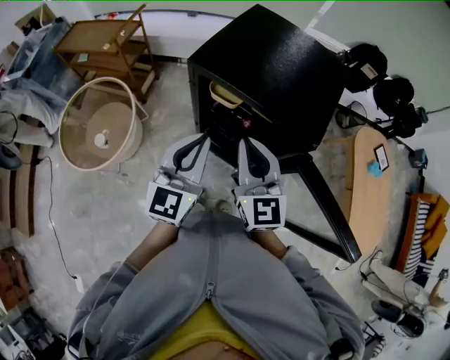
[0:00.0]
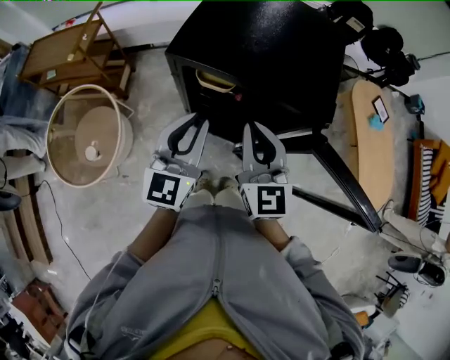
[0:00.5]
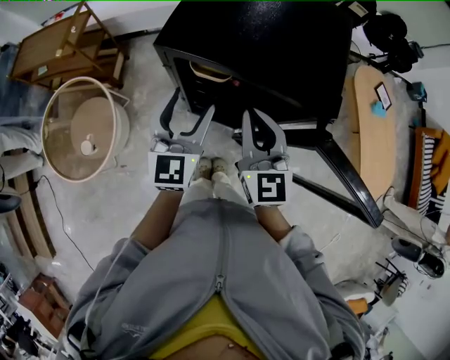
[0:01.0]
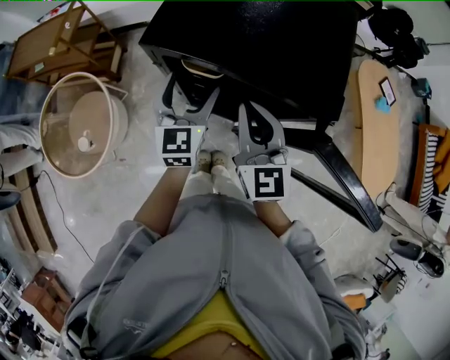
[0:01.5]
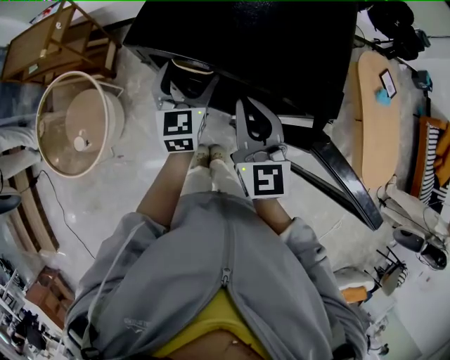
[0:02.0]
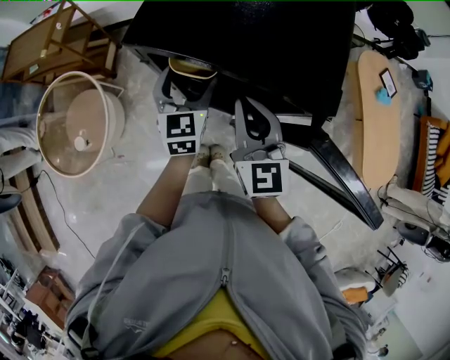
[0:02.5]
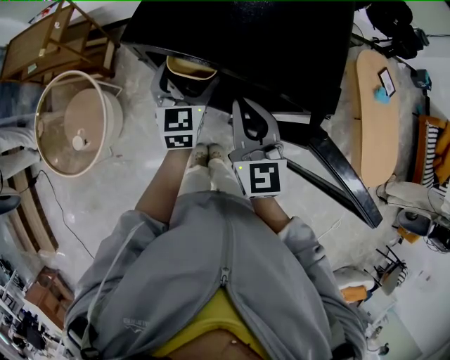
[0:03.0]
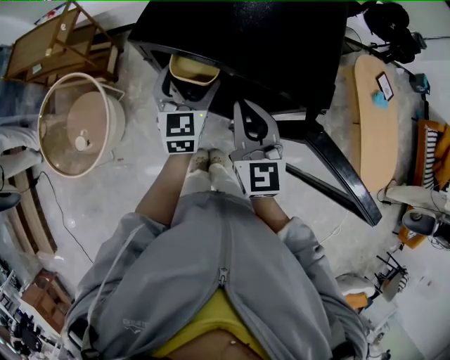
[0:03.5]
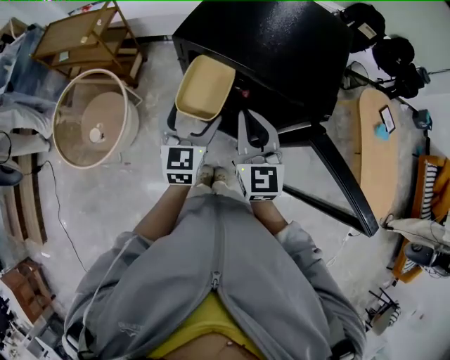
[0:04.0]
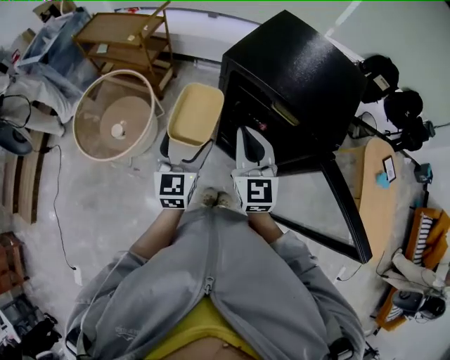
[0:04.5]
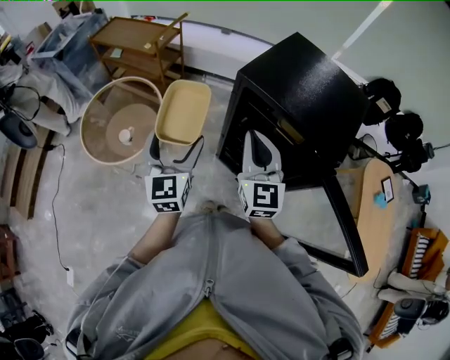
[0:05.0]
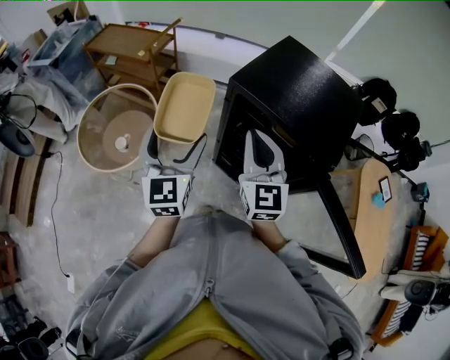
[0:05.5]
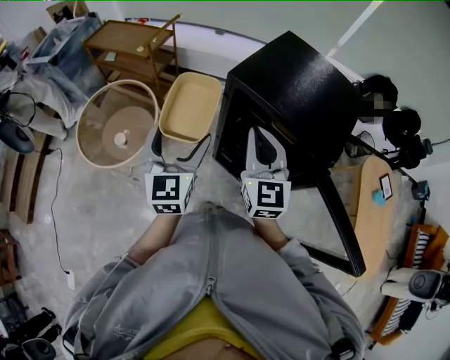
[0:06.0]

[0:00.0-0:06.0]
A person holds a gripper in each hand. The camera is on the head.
0:00.0 to 0:02.0: The left gripper goes about 25 cm forward and downward, and opens up, while the right gripper heads forward and downward, covering roughly 10 cm.
0:02.0 to 0:04.0: The right gripper shifts by roughly 5 cm, while the left gripper moves backward, approximately 10 cm.
0:04.0 to 0:06.0: The left gripper goes about 20 cm to the left and upward; the right gripper shifts some 10 cm upward and to the left.

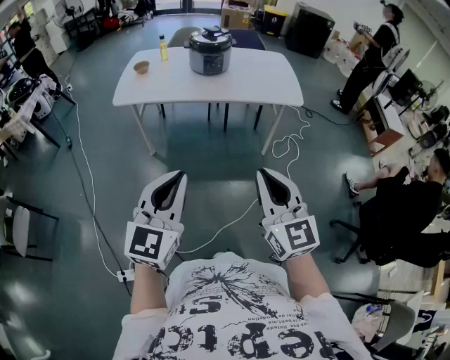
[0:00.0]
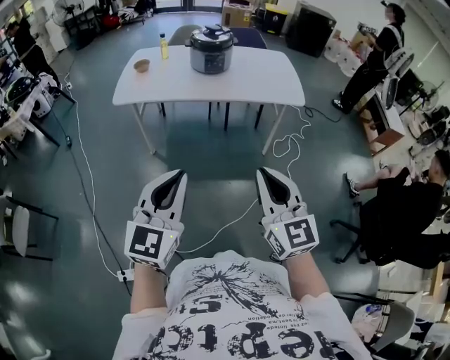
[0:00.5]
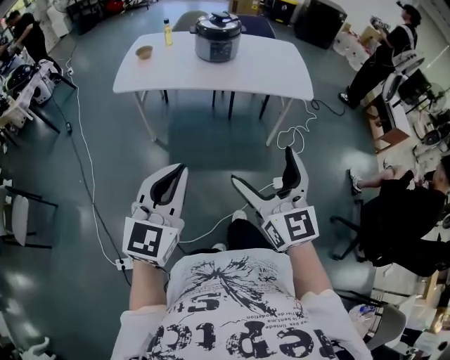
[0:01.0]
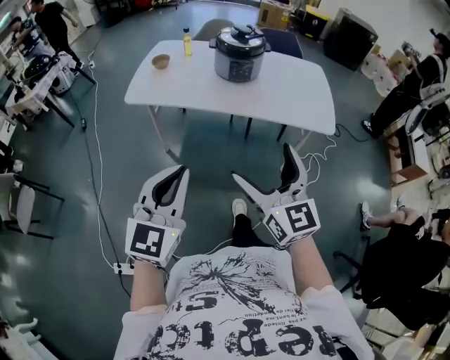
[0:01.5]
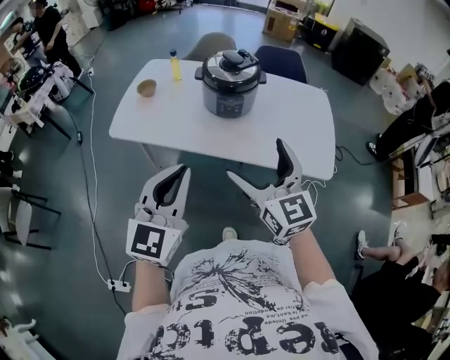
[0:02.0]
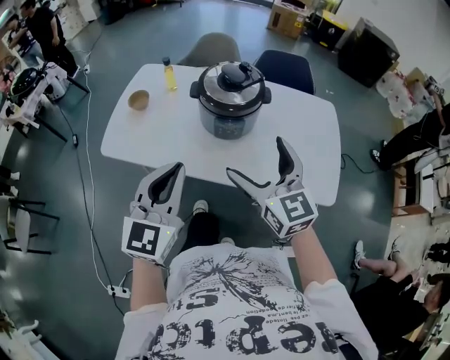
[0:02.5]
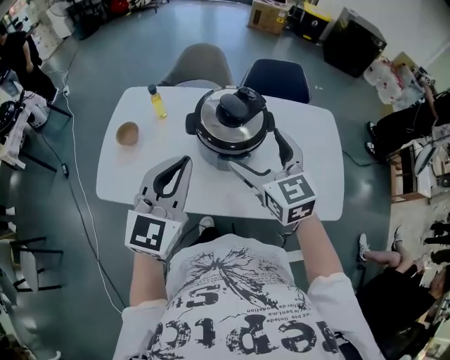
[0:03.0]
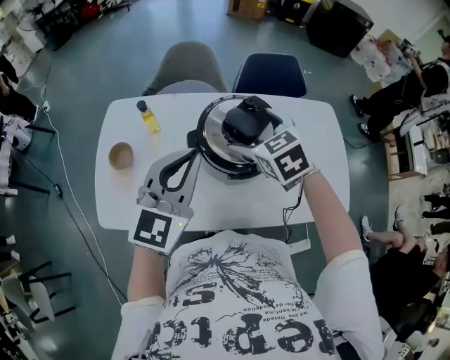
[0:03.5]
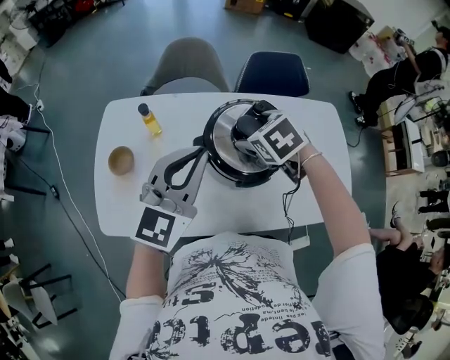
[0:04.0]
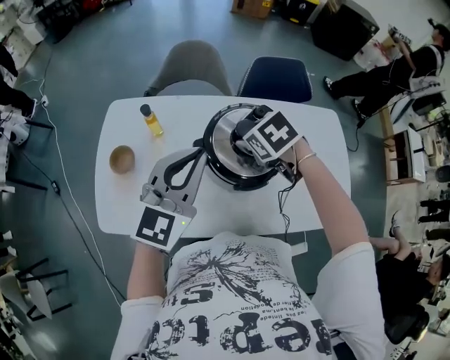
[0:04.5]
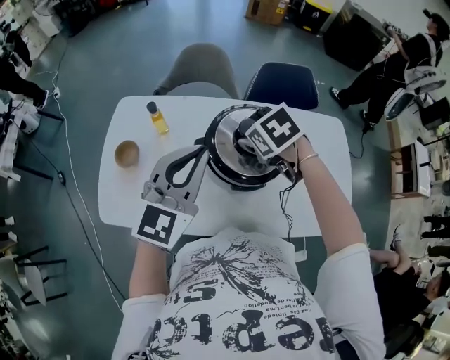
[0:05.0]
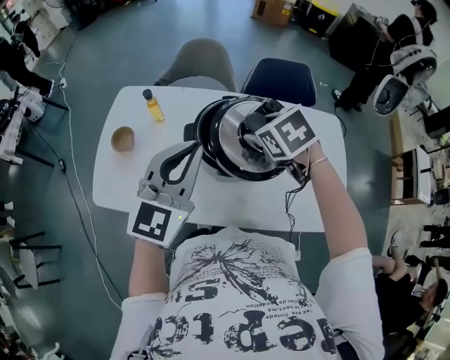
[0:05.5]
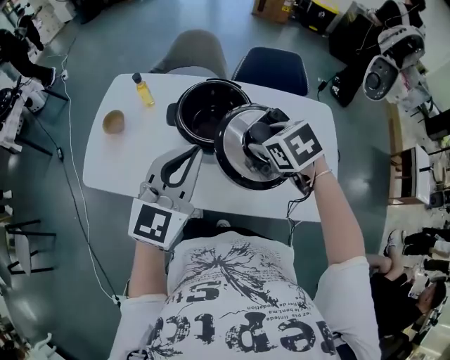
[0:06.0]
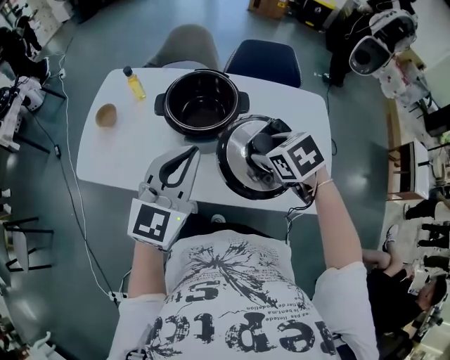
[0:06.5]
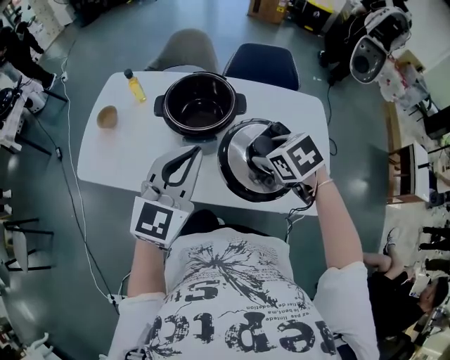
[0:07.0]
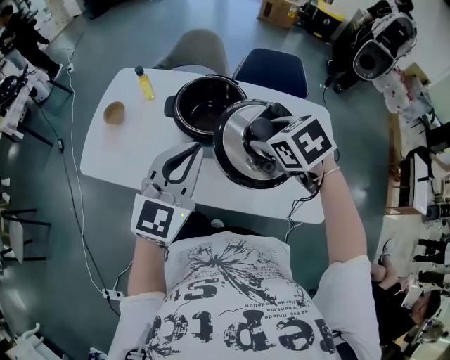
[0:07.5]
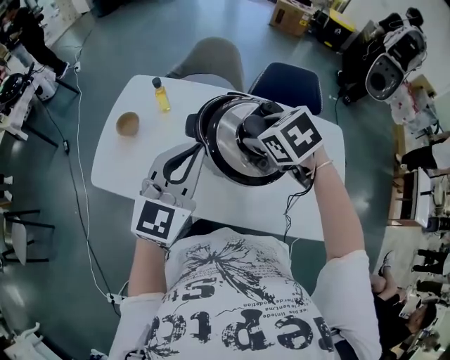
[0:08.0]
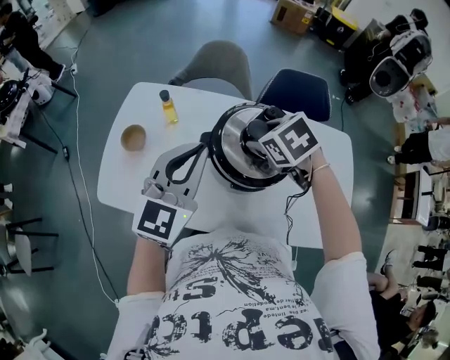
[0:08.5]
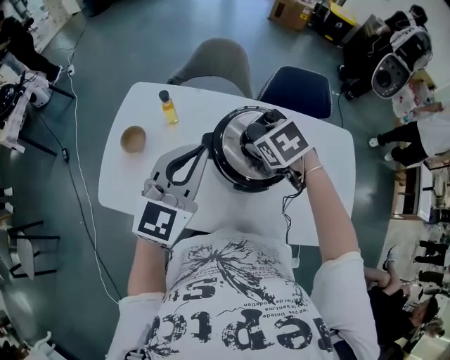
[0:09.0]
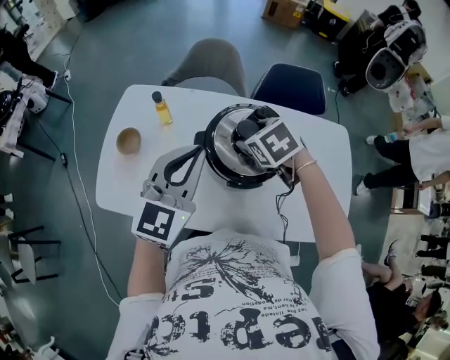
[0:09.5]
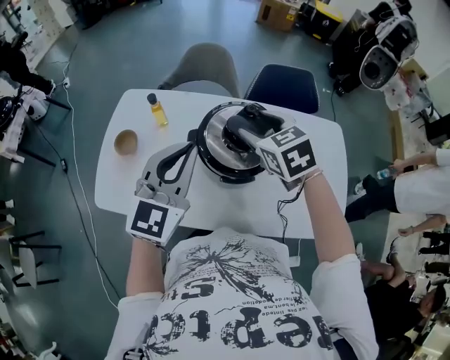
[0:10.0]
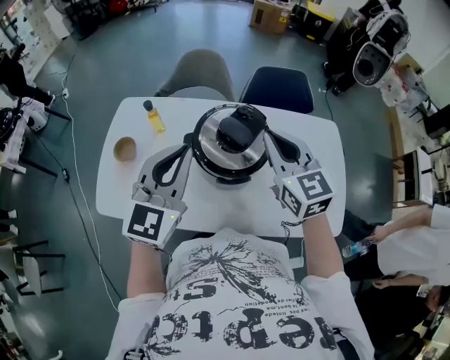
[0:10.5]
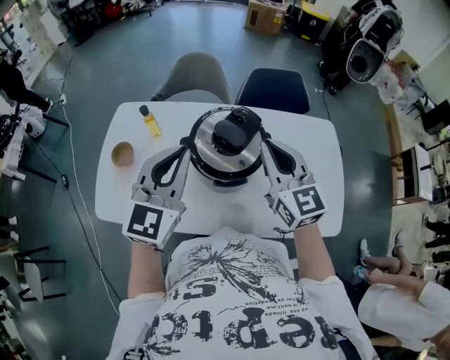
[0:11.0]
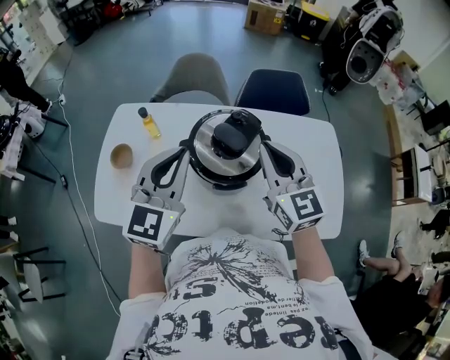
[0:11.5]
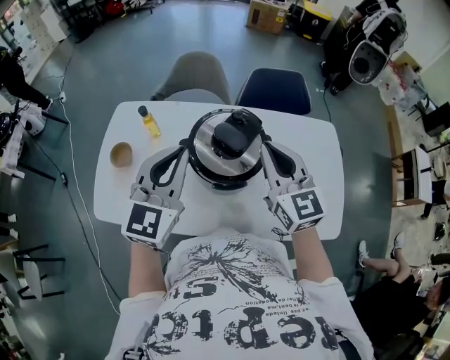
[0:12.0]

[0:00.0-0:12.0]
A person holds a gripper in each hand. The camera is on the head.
0:00.0 to 0:02.0: Both grippers are carried forward, roughly 60 cm. The right gripper opens.
0:02.0 to 0:04.0: The two grippers travel together, forward, approximately 70 cm. The left gripper rotates roughly 20 degrees; the right gripper angles its fingers downward, by some 60 degrees.
0:04.0 to 0:06.0: Both grippers travel together to the right and backward, about 25 cm.
0:06.0 to 0:08.0: The two grippers go approximately 10 cm to the left and forward.
0:08.0 to 0:10.0: The two grippers go about 10 cm forward. The right gripper turns by about 20 degrees.
0:10.0 to 0:12.0: The right gripper shifts some 10 cm to the right and backward, angles its fingers upward, by roughly 30 degrees, and closes its fingers.

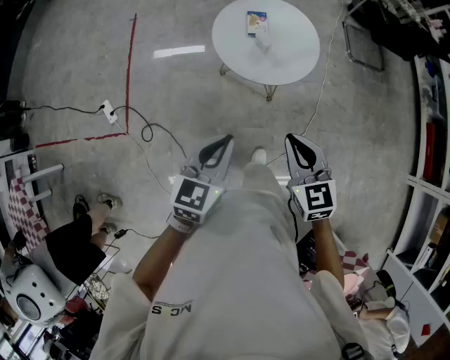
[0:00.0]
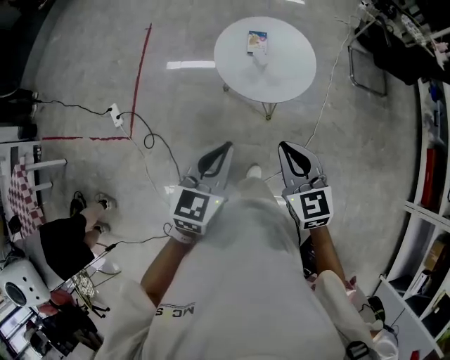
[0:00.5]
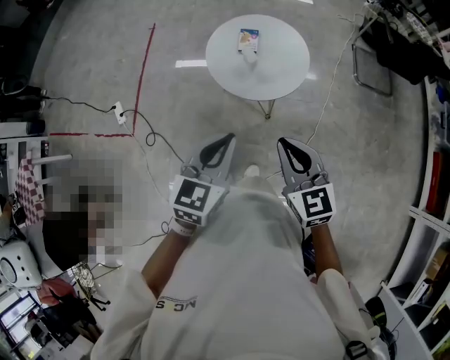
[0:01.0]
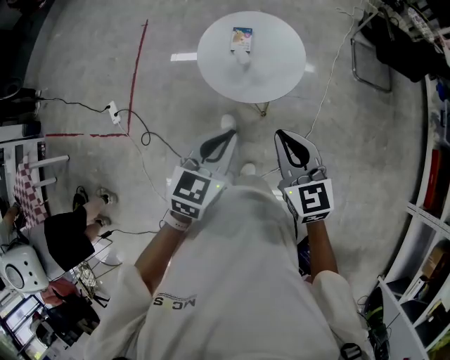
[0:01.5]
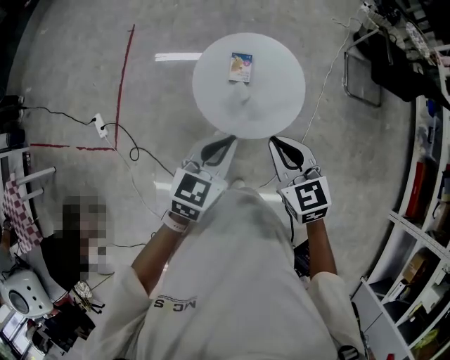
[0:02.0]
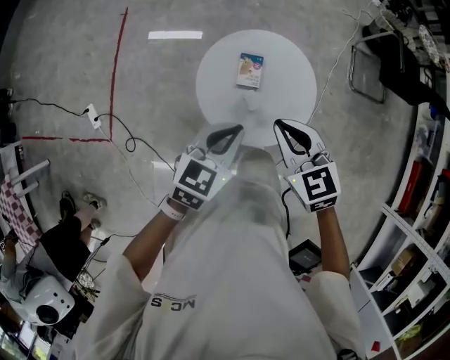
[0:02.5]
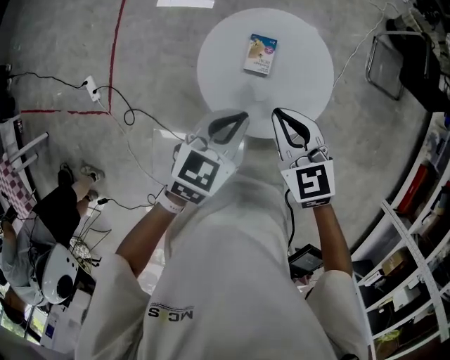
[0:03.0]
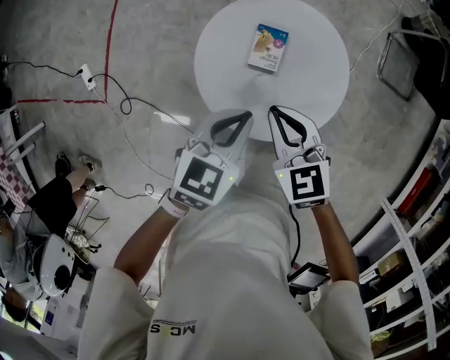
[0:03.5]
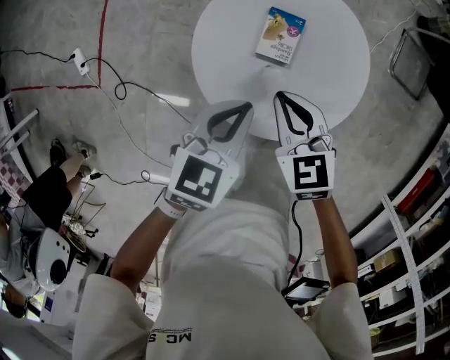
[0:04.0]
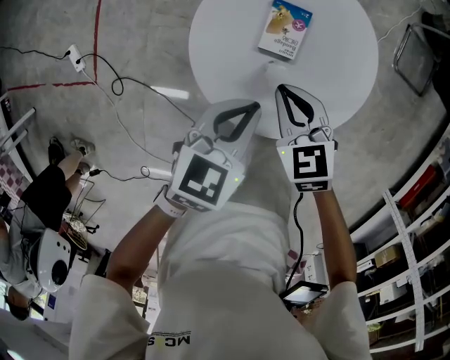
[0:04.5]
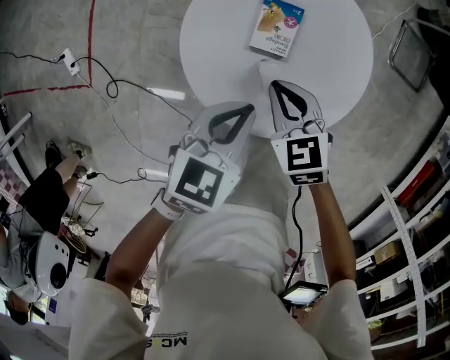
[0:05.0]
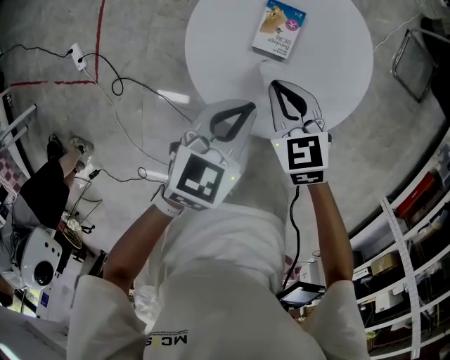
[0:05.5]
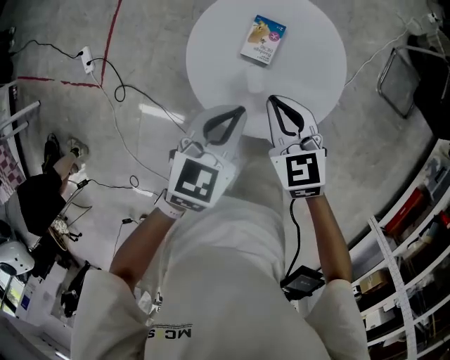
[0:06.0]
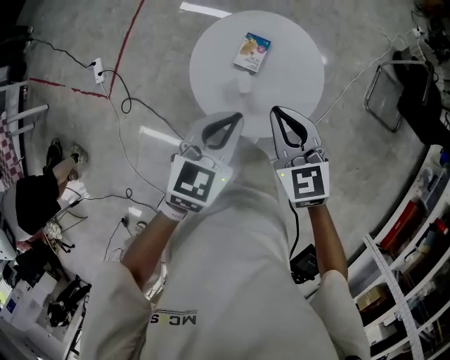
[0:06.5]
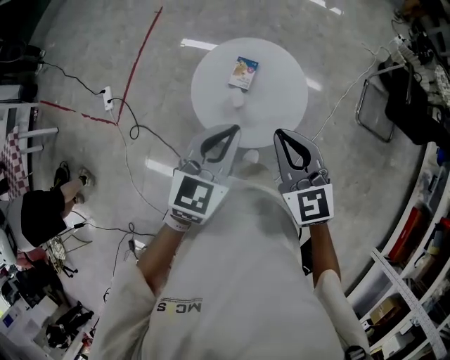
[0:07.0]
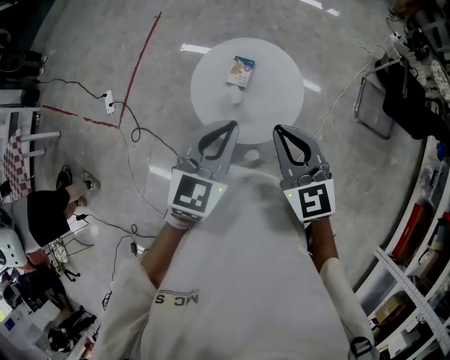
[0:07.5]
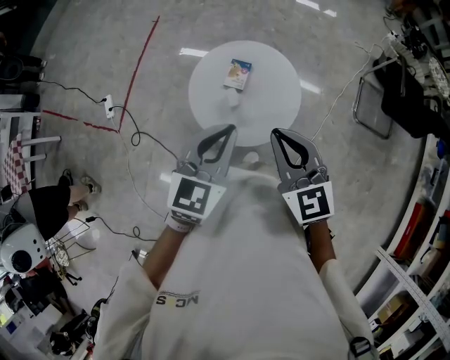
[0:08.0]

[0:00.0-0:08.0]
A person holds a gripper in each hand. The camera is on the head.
0:00.0 to 0:02.0: The right gripper moves forward, some 25 cm; the left gripper heads forward and to the right, covering roughly 25 cm.
0:02.0 to 0:04.0: The two grippers go about 30 cm downward and forward.
0:04.0 to 0:06.0: The two grippers go about 5 cm upward.
0:06.0 to 0:08.0: Both grippers travel together upward and backward, approximately 30 cm. The right gripper changes its angle by approximately 30 degrees; the left gripper changes its angle by roughly 20 degrees.

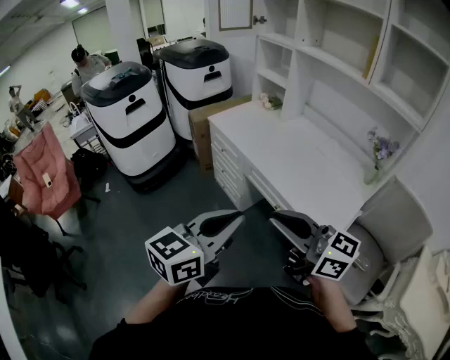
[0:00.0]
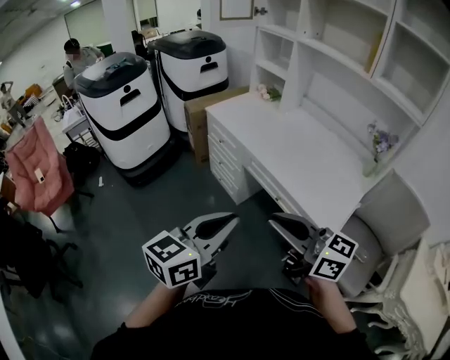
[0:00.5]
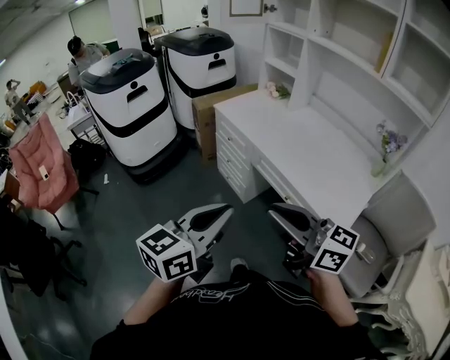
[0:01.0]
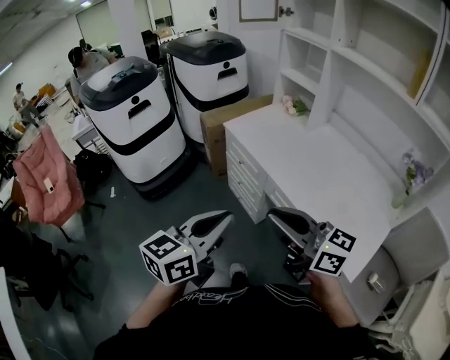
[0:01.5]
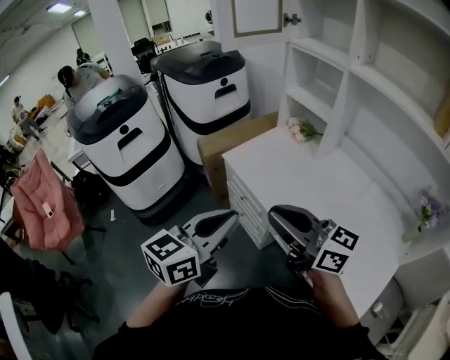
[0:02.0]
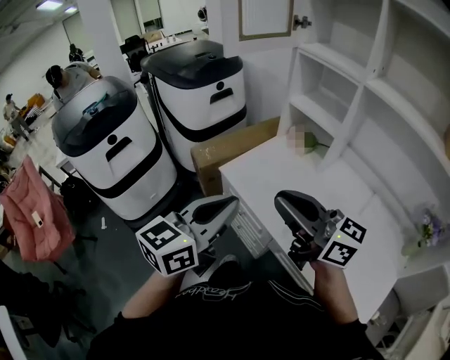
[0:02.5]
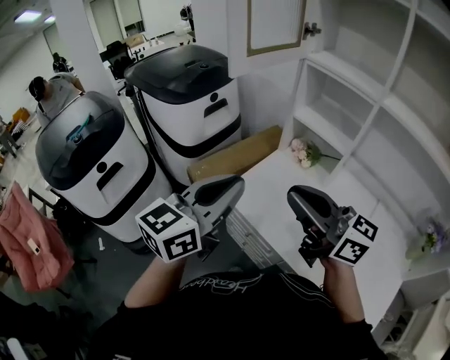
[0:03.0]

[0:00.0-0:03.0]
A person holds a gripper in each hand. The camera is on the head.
0:00.0 to 0:01.5: The right gripper moves forward, approximately 20 cm; the left gripper heads forward and to the left, covering roughly 20 cm.
0:01.5 to 0:03.0: The pair of grippers is taken forward, some 50 cm.
